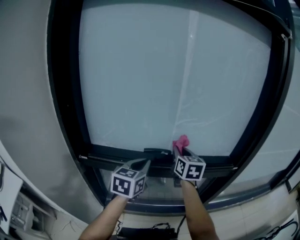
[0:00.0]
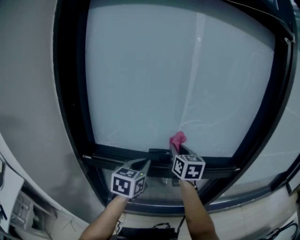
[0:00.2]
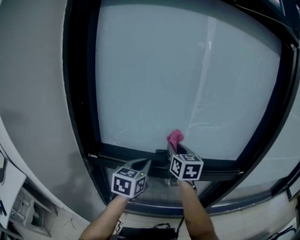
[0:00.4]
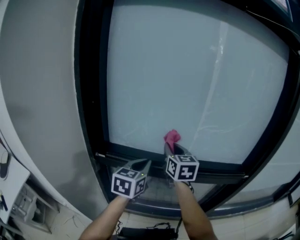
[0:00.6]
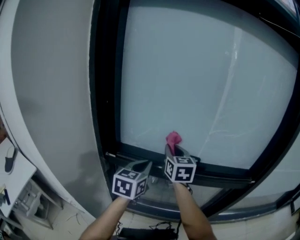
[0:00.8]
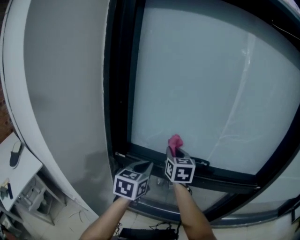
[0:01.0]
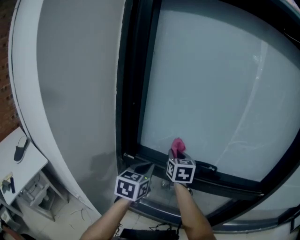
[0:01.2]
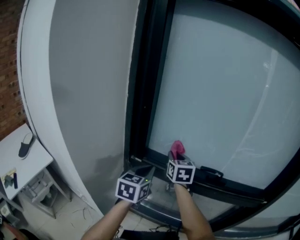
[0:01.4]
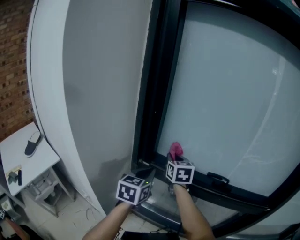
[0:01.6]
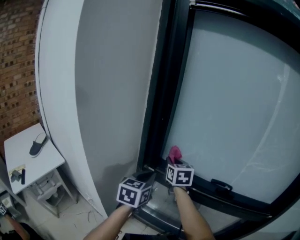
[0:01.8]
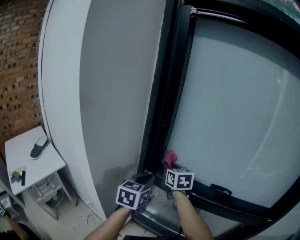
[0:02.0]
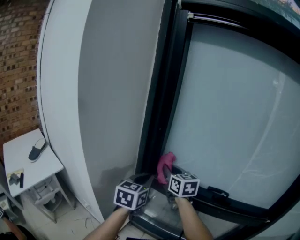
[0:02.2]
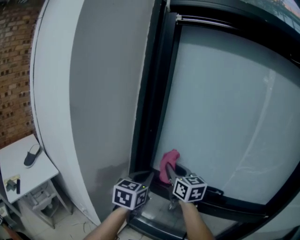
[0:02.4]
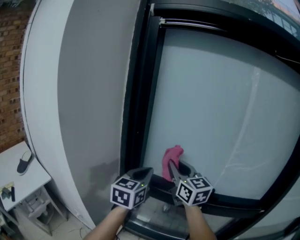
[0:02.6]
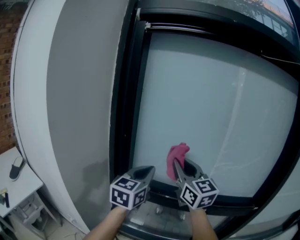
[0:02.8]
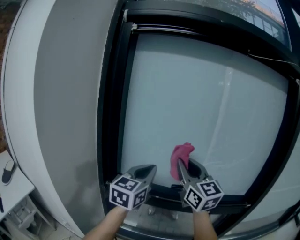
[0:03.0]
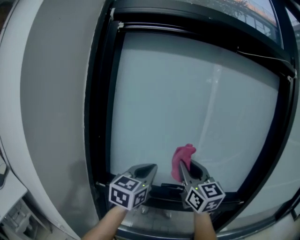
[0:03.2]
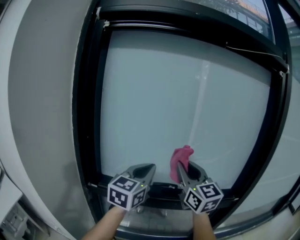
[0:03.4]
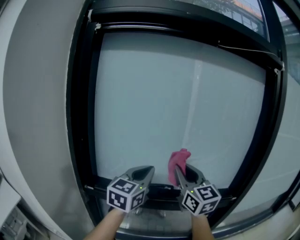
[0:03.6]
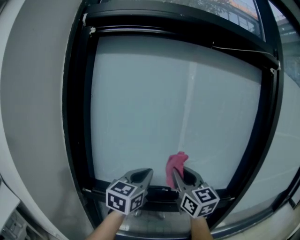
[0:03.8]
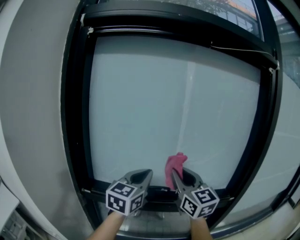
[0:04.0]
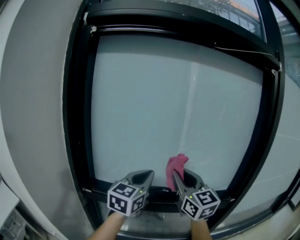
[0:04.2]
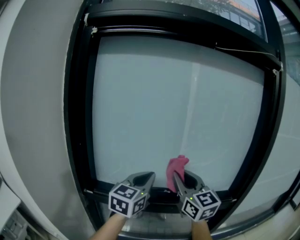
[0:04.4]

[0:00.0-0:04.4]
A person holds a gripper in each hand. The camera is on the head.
0:00.0 to 0:01.4: Both grippers travel together to the left, roughly 25 cm. The right gripper turns by some 20 degrees. Meanwhile the left gripper swivels some 20 degrees.
0:01.4 to 0:03.0: The left gripper travels upward and to the right by some 20 cm, and turns by approximately 30 degrees, while the right gripper goes some 25 cm upward, backward and to the right, and rotates some 30 degrees.
0:03.0 to 0:04.4: Both grippers move to the right, approximately 10 cm.

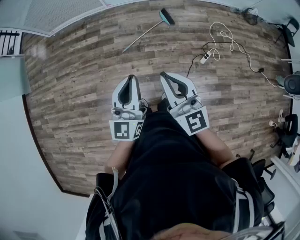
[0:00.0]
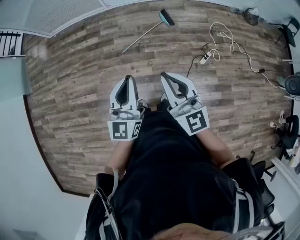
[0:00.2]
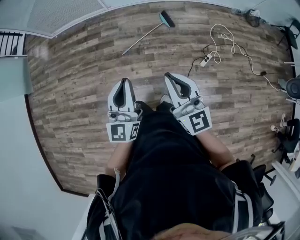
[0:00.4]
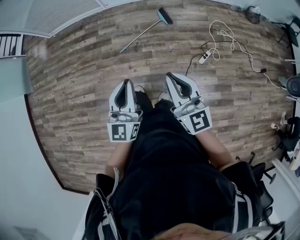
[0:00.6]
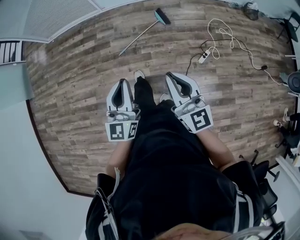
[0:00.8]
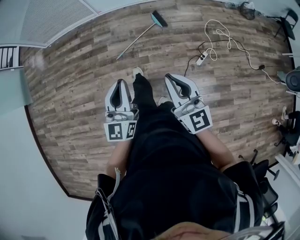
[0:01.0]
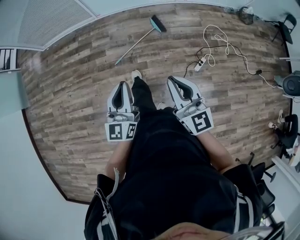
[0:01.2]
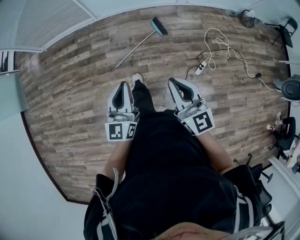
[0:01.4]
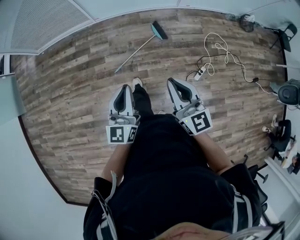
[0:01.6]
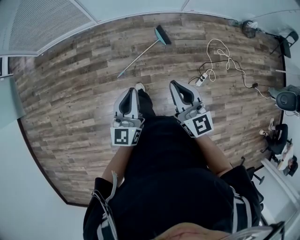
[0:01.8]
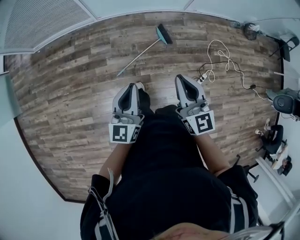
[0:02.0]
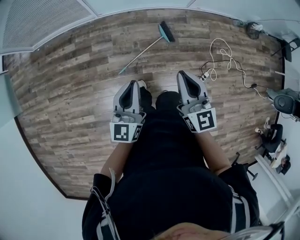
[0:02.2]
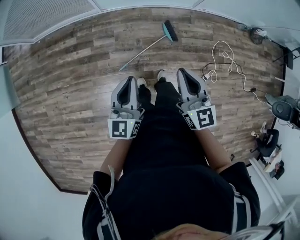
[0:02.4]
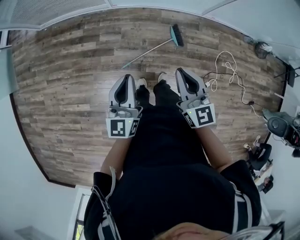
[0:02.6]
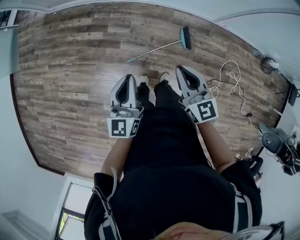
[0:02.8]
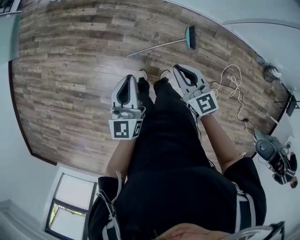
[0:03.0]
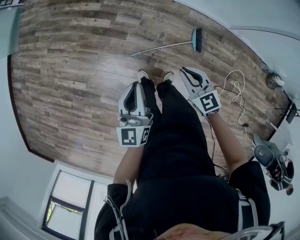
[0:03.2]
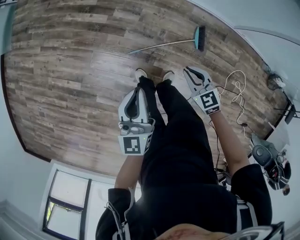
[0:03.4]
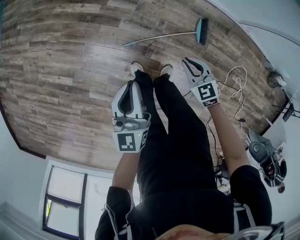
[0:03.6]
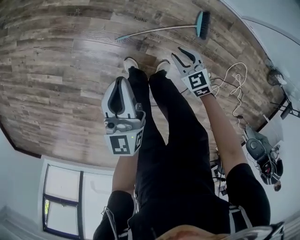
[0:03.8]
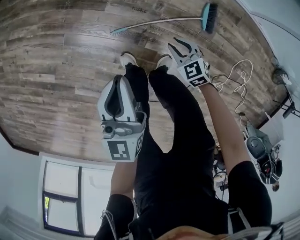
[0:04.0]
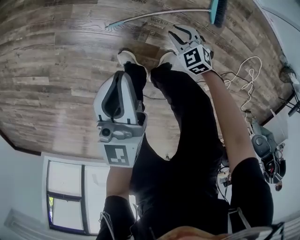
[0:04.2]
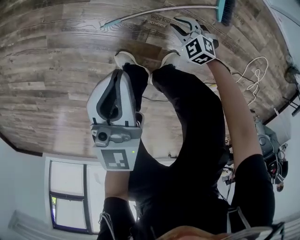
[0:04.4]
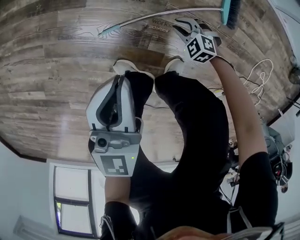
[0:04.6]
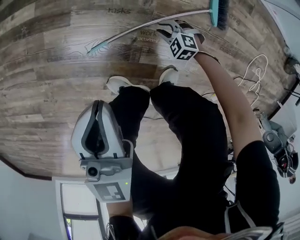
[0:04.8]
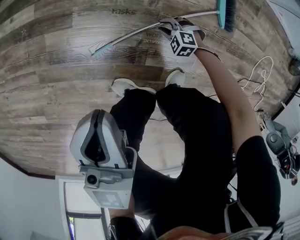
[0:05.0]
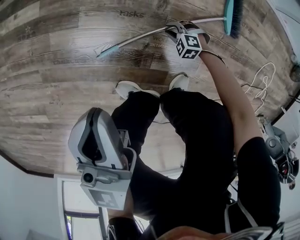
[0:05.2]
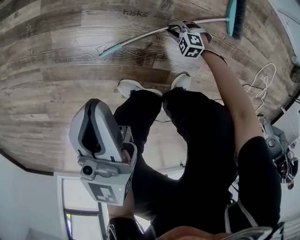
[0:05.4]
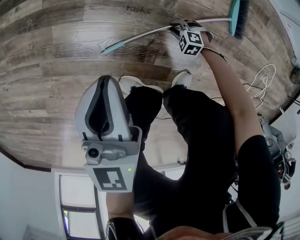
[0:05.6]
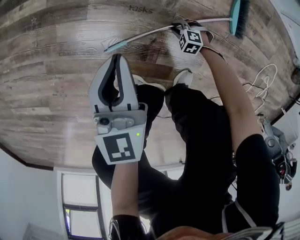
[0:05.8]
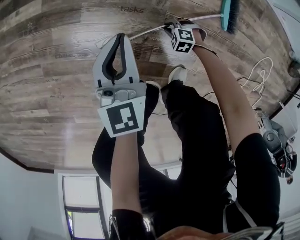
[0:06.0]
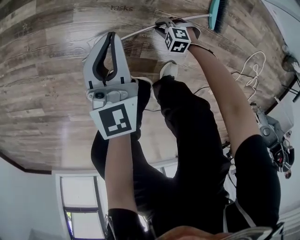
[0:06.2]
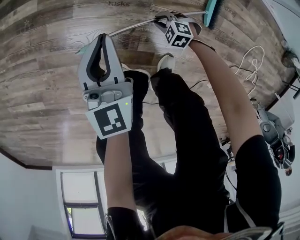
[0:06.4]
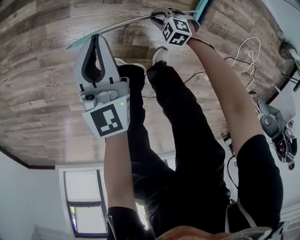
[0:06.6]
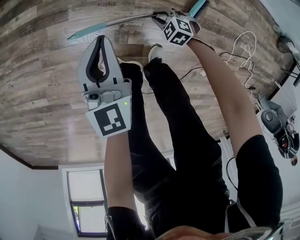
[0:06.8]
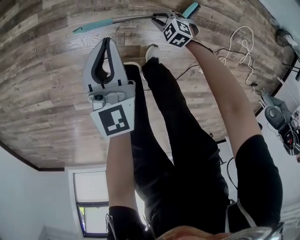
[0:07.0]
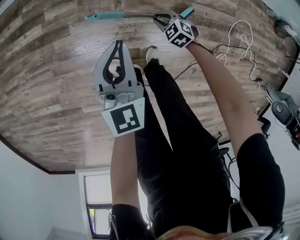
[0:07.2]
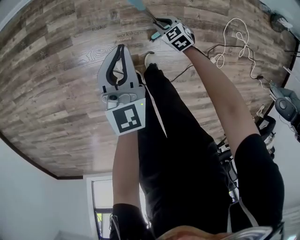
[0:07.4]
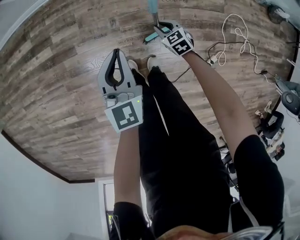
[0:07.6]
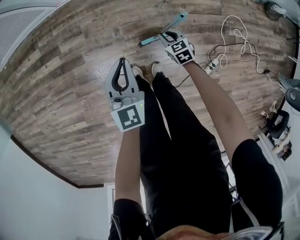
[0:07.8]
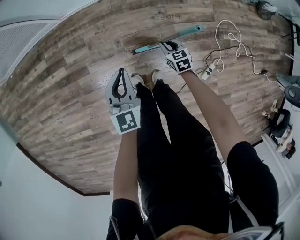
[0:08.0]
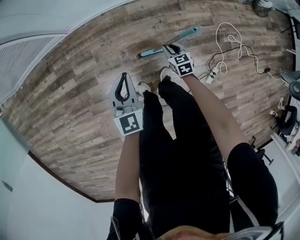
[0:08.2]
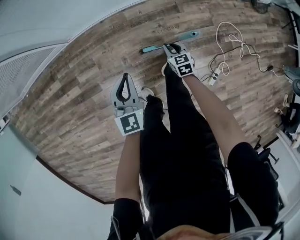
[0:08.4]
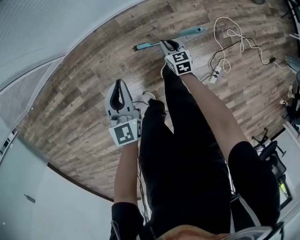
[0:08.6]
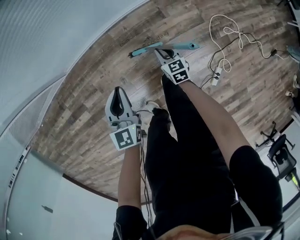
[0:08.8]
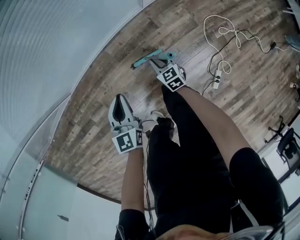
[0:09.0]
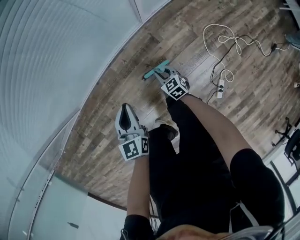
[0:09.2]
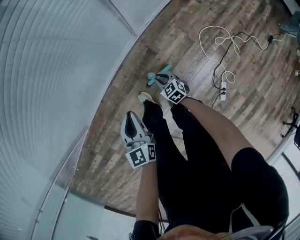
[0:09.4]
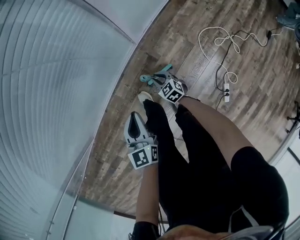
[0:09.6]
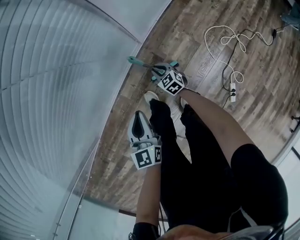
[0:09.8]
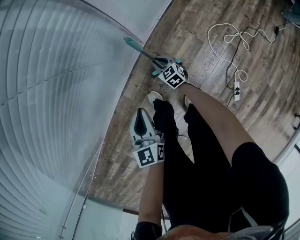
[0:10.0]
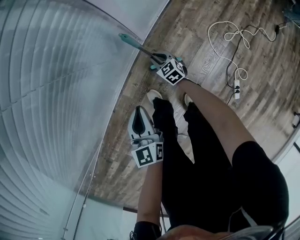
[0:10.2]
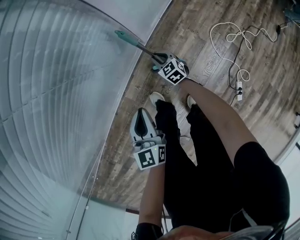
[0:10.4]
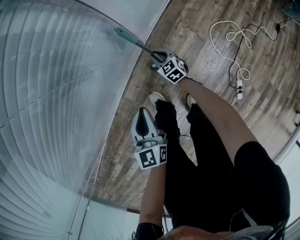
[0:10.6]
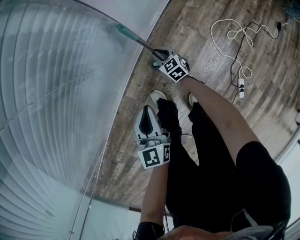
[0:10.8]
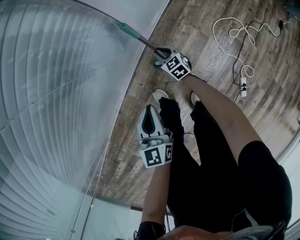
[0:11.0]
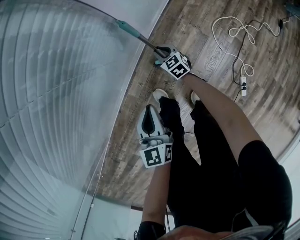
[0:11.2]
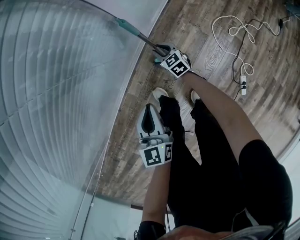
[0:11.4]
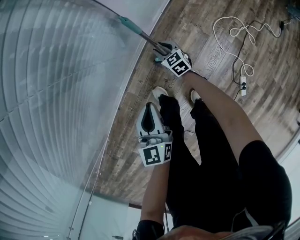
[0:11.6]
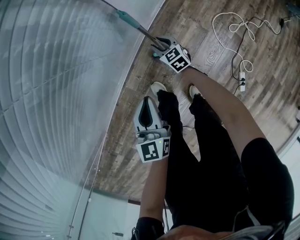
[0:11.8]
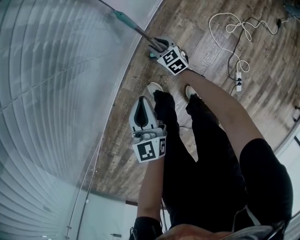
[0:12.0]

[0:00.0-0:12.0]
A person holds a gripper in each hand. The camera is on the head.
0:00.0 to 0:01.6: The right gripper goes about 25 cm forward and to the right. Meanwhile the left gripper is displaced forward by some 25 cm.
0:01.6 to 0:03.0: The left gripper changes place by roughly 25 cm, and rotates some 30 degrees. Meanwhile the right gripper shifts by some 30 cm, and rotates approximately 40 degrees.
0:03.0 to 0:04.4: The right gripper is displaced downward by roughly 70 cm, angles its fingers downward, by roughly 40 degrees, and opens up; the left gripper heads downward, covering roughly 50 cm.
0:04.4 to 0:06.0: Both grippers travel together downward, about 20 cm. The right gripper turns by roughly 20 degrees.
0:06.0 to 0:07.6: The two grippers go some 35 cm upward. The right gripper twists some 60 degrees clockwise, seen from behind.
0:07.6 to 0:09.0: The left gripper shifts by some 30 cm, and turns by about 20 degrees, while the right gripper shifts by about 30 cm, and changes its angle by about 40 degrees.
0:09.0 to 0:10.4: The right gripper travels forward and downward by roughly 30 cm; the left gripper moves forward and to the right, roughly 25 cm.
0:10.4 to 0:12.0: The grippers make only small movements.

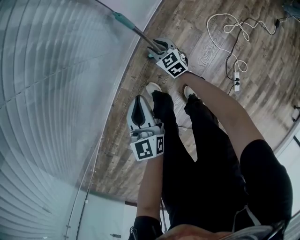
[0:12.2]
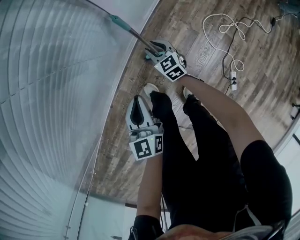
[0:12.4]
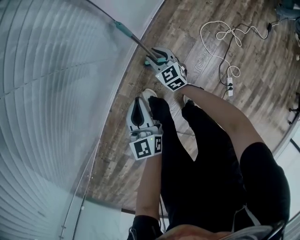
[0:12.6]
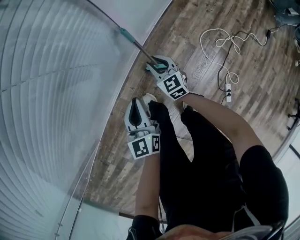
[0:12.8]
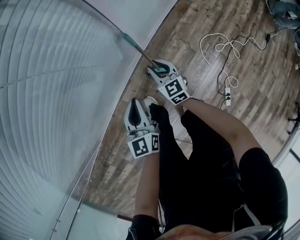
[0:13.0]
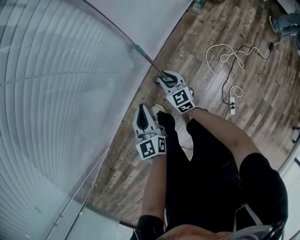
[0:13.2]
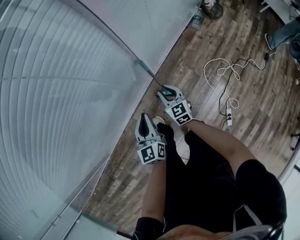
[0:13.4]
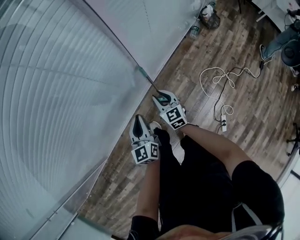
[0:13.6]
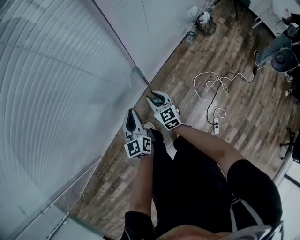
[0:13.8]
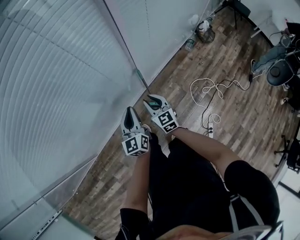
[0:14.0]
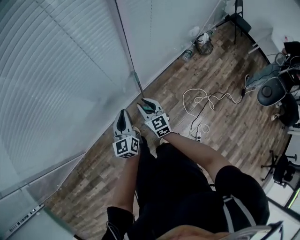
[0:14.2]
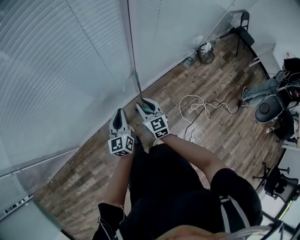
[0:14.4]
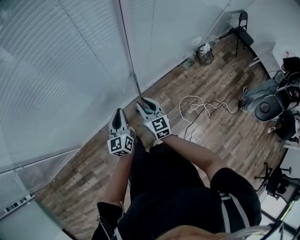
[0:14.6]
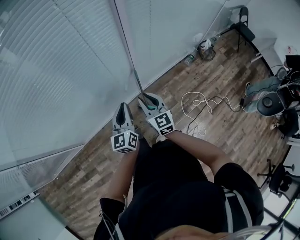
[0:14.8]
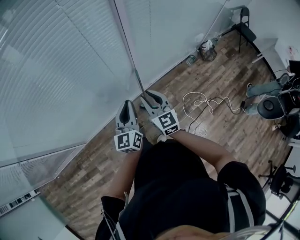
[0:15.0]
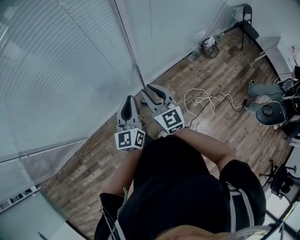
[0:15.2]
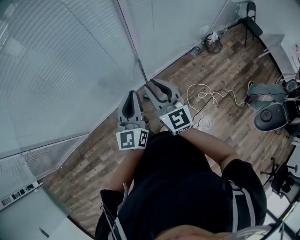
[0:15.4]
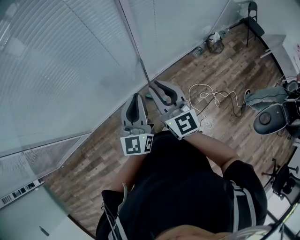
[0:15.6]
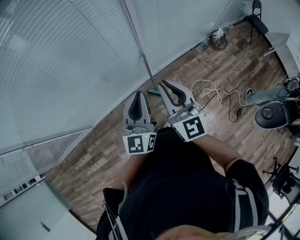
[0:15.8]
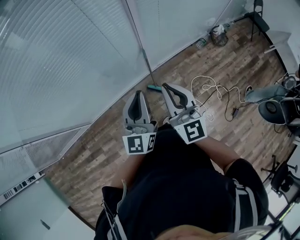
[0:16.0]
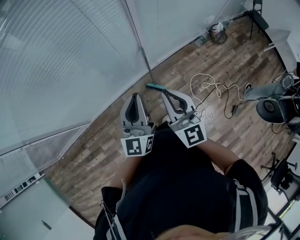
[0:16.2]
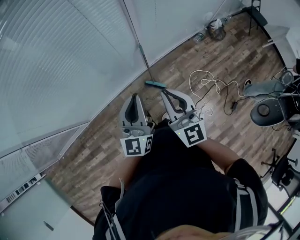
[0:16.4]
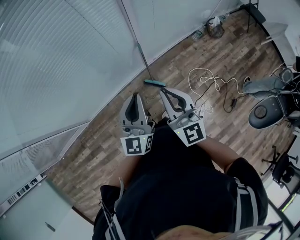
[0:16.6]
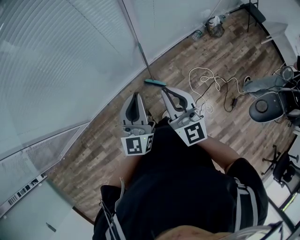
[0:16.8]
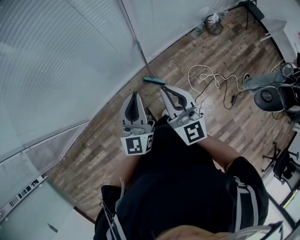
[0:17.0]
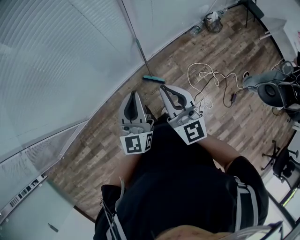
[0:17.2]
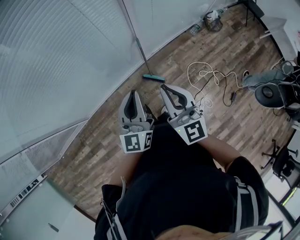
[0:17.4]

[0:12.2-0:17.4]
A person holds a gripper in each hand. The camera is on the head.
0:12.2 to 0:14.0: The left gripper moves upward, roughly 25 cm; the right gripper shifts approximately 40 cm upward.
0:14.0 to 0:15.6: The grippers both shift upward and backward by some 30 cm. The right gripper changes its angle by some 20 degrees.
0:15.6 to 0:17.4: The left gripper ends up some 5 cm from where it was. Meanwhile the right gripper travels backward by approximately 5 cm.

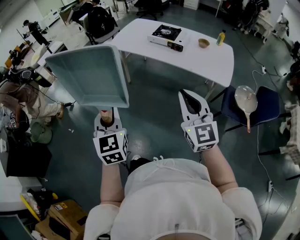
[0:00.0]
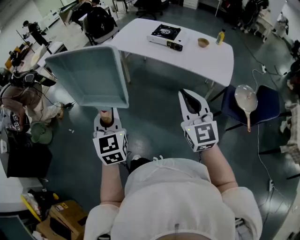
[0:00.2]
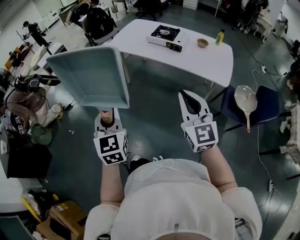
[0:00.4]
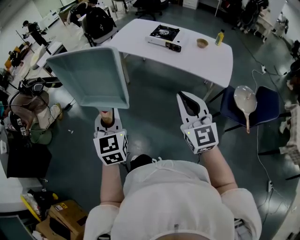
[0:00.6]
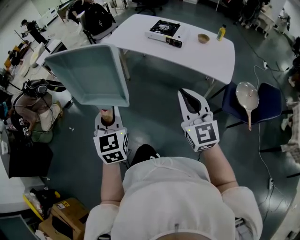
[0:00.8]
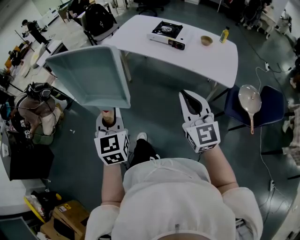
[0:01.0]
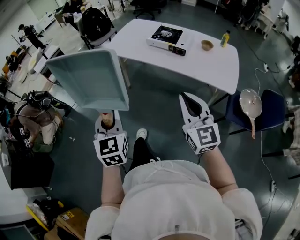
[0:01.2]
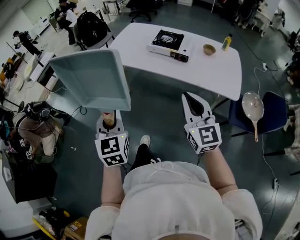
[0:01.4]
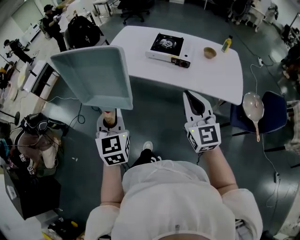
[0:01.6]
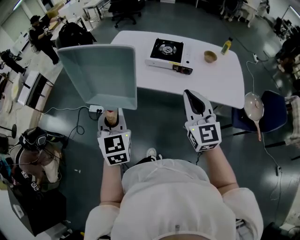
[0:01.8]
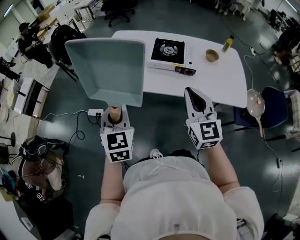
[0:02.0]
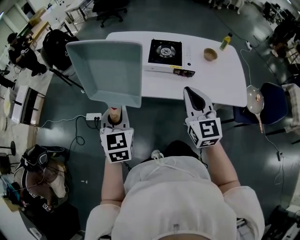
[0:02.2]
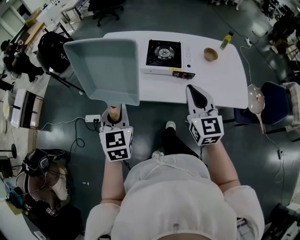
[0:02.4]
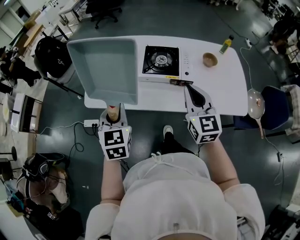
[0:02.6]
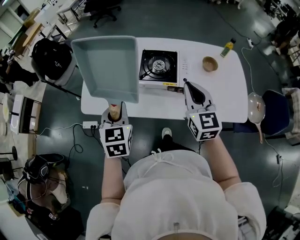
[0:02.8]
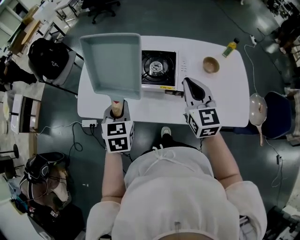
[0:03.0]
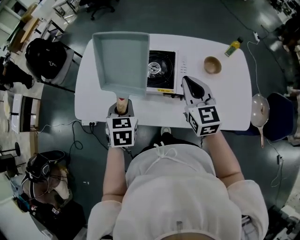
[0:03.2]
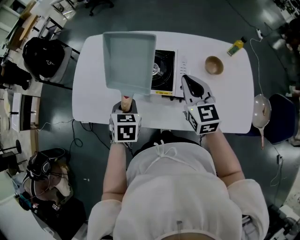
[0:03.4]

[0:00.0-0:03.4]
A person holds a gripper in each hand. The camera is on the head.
0:00.0 to 0:01.6: The two grippers go about 30 cm forward.
0:01.6 to 0:03.4: Both grippers are carried forward, approximately 50 cm. The left gripper moves downward, approximately 20 cm, and tips its fingers downward by roughly 40 degrees. The right gripper changes its angle by about 20 degrees.
